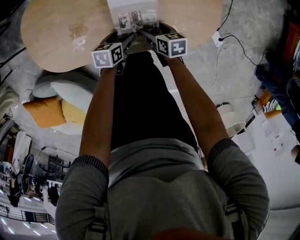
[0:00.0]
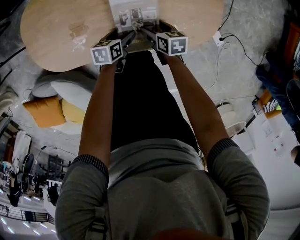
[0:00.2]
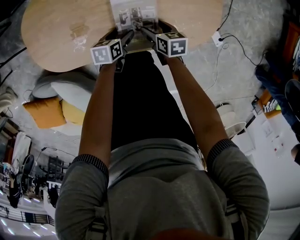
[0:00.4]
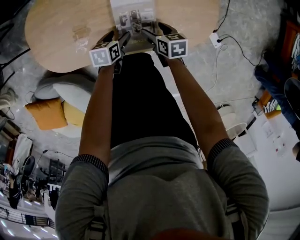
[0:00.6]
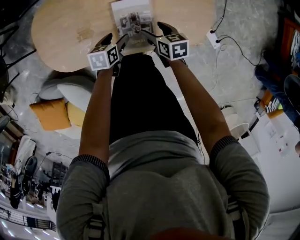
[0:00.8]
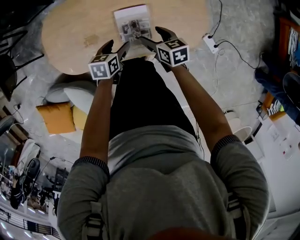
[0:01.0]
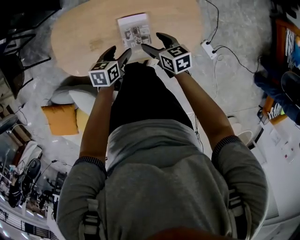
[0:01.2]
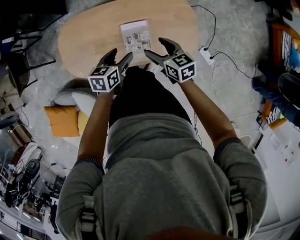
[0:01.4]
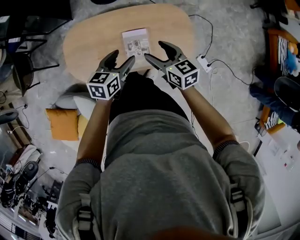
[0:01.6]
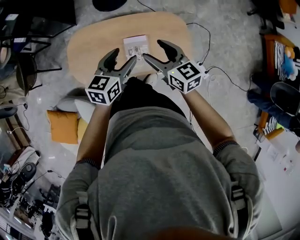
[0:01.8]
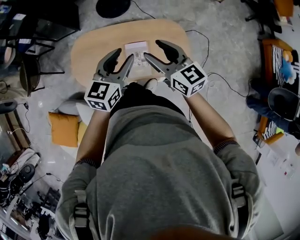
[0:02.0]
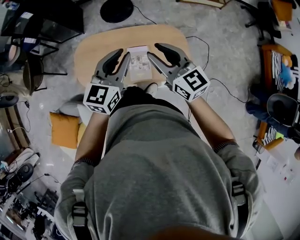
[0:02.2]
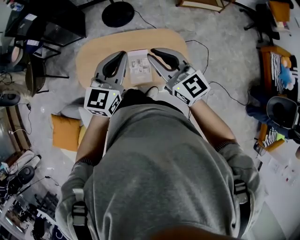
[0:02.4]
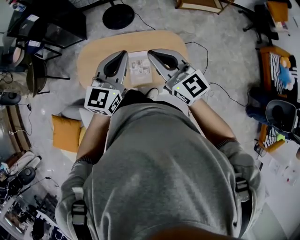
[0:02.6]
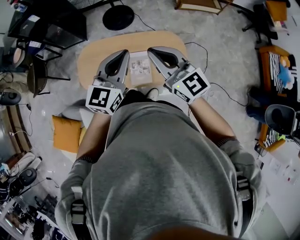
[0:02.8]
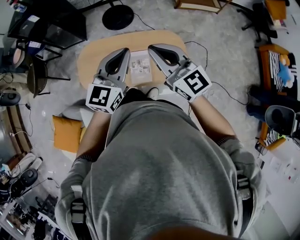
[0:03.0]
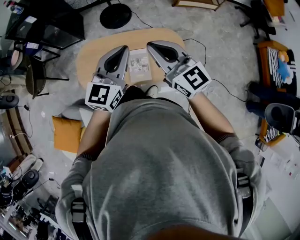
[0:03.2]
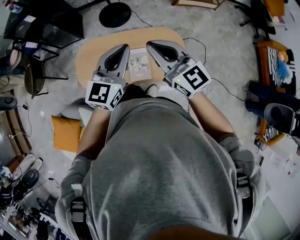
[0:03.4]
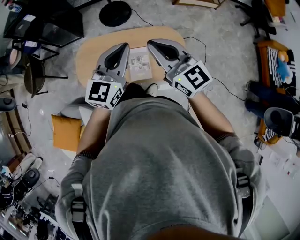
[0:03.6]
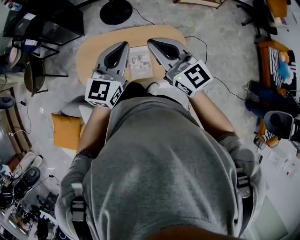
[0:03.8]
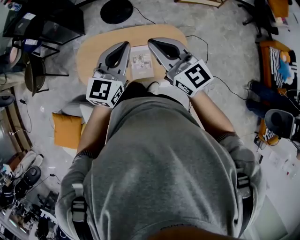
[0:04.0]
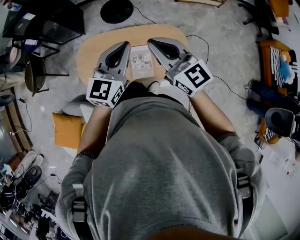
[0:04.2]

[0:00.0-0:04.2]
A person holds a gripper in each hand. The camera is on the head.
0:00.0 to 0:01.4: The grippers both shift upward by about 30 cm. The right gripper turns by about 30 degrees.
0:01.4 to 0:02.8: The grippers both shift upward by roughly 35 cm. The left gripper points its fingers approximately 30 degrees further upward, and closes its fingers. The right gripper tilts its fingers approximately 30 degrees upward, and closes its fingers.
0:02.8 to 0:04.2: There are only small adjustments of the grippers.

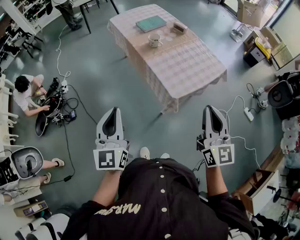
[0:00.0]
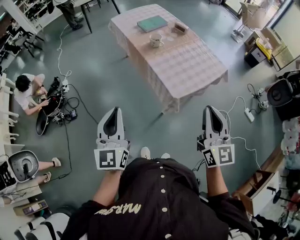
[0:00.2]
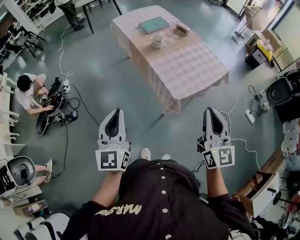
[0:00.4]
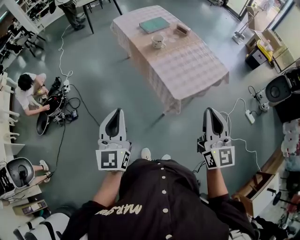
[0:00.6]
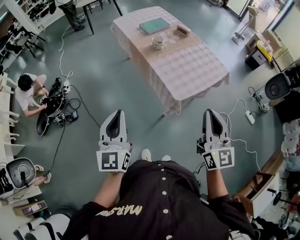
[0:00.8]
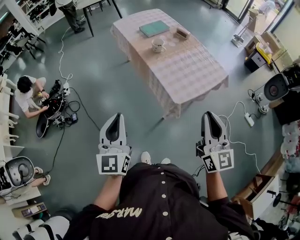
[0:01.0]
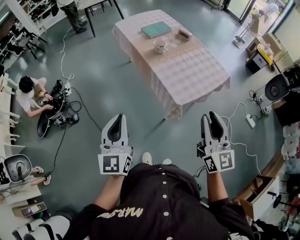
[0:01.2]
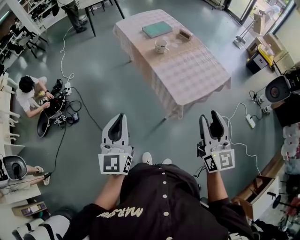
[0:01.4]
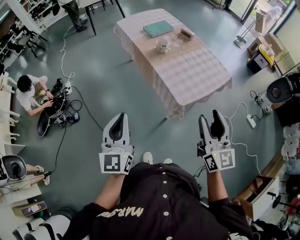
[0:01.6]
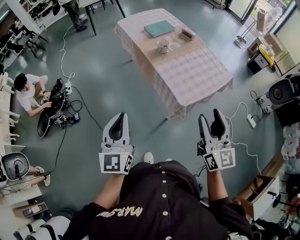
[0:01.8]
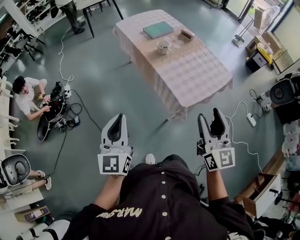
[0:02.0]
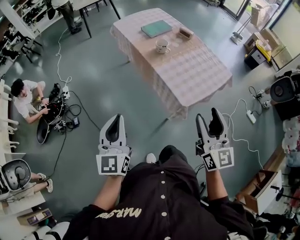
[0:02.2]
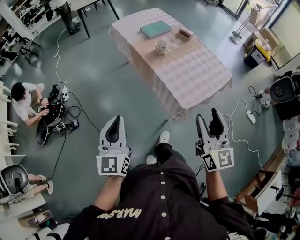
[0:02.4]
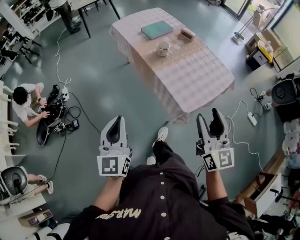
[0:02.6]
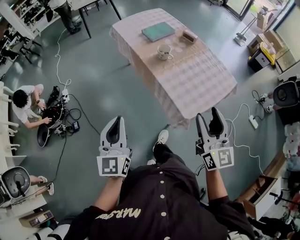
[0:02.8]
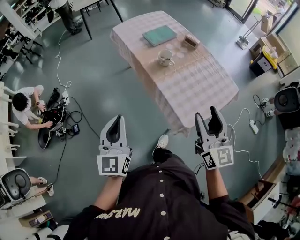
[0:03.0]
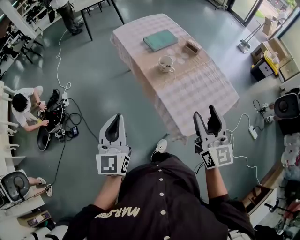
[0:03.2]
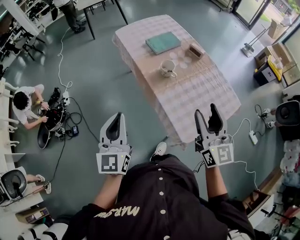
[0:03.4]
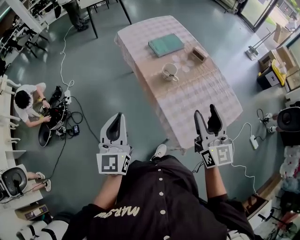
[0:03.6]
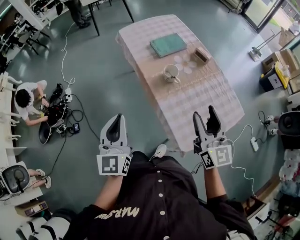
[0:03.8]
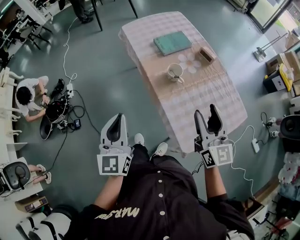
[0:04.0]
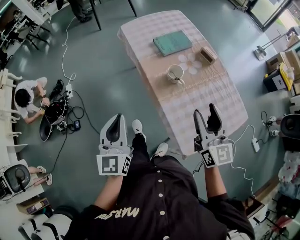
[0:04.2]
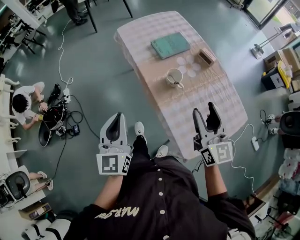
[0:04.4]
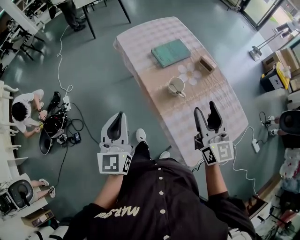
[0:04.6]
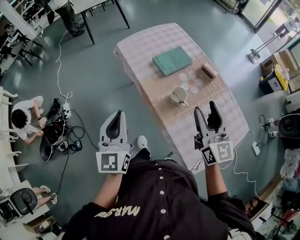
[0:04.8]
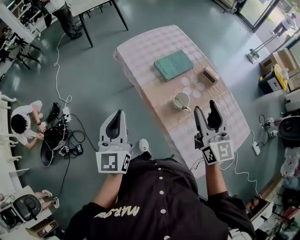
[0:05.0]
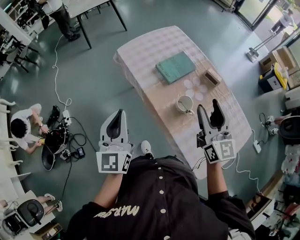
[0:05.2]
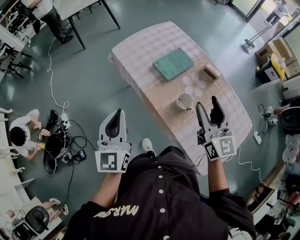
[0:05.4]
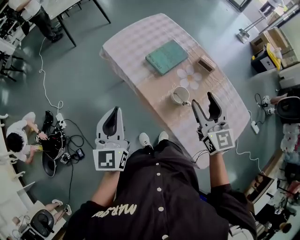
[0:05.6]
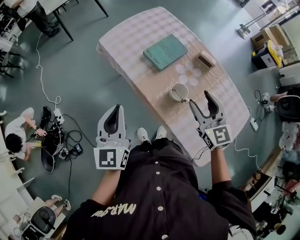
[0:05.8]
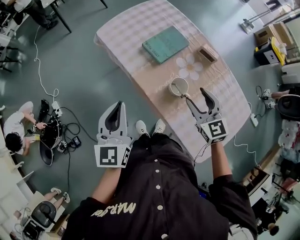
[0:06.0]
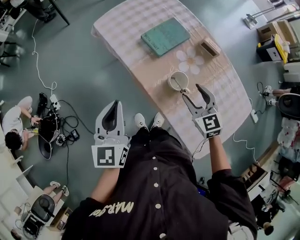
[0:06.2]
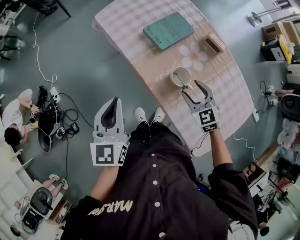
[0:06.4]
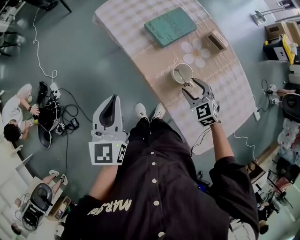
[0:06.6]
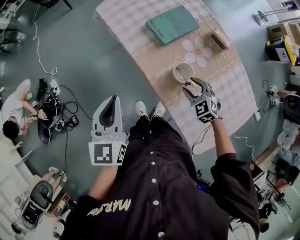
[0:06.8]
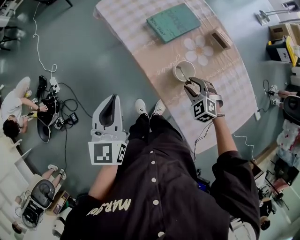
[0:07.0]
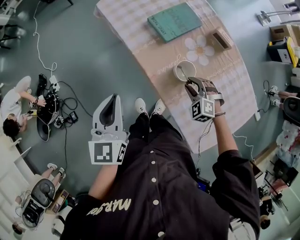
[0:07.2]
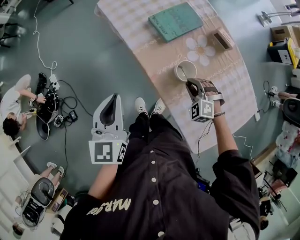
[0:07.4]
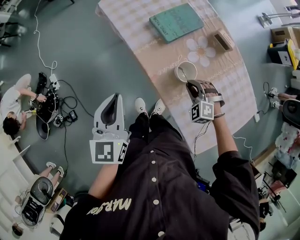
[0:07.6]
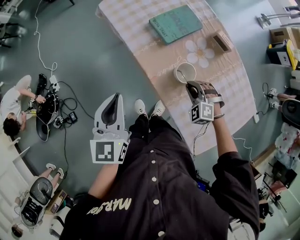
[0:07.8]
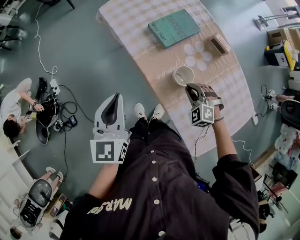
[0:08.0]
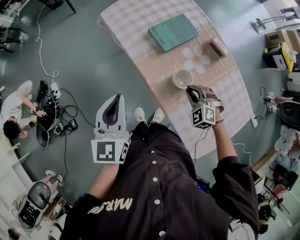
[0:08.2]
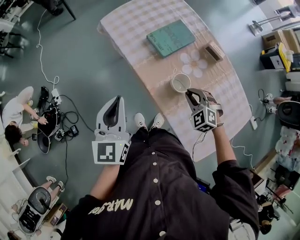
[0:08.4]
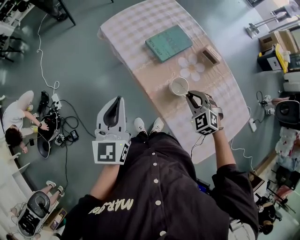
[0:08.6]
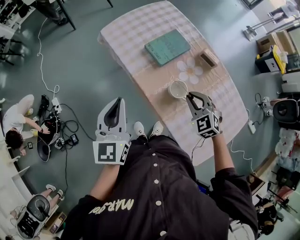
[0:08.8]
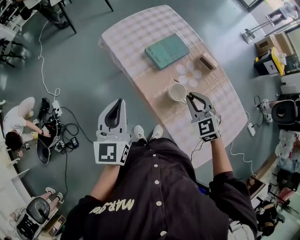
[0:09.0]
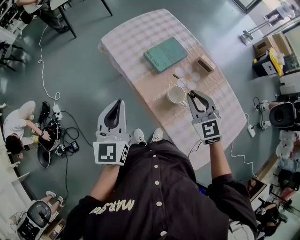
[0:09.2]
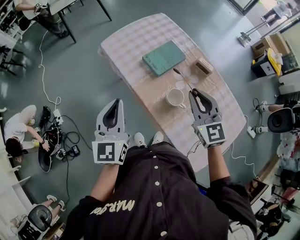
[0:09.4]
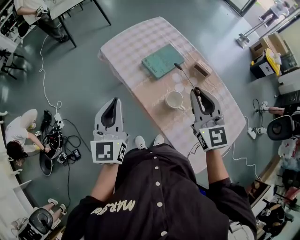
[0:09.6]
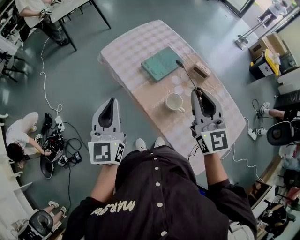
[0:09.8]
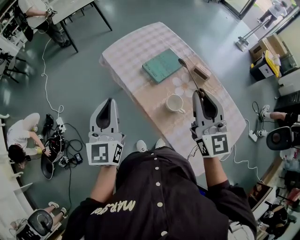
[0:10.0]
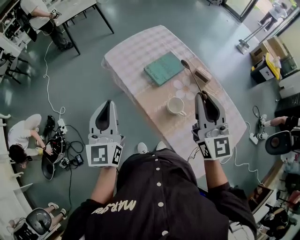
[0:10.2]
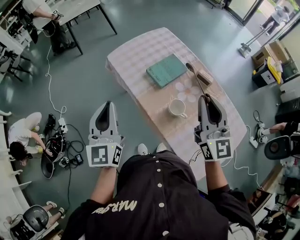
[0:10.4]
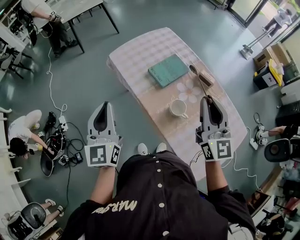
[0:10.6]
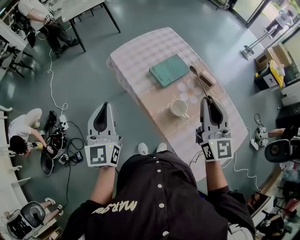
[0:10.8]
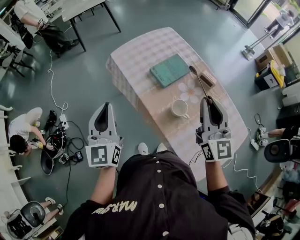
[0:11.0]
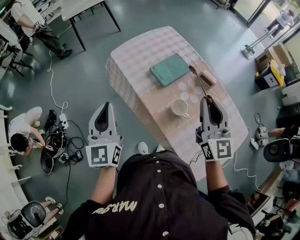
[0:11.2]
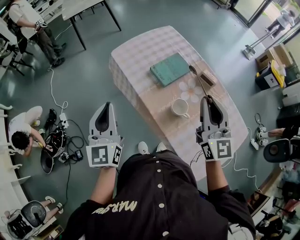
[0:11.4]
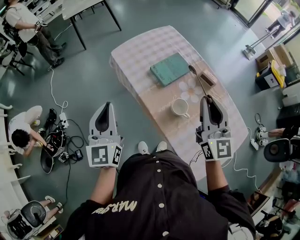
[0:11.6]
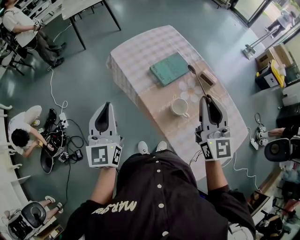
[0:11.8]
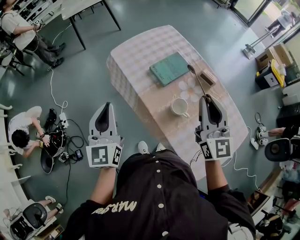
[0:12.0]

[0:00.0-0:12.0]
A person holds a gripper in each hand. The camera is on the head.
0:00.0 to 0:01.6: The right gripper opens its fingers.
0:01.6 to 0:03.0: The two grippers go about 15 cm forward.
0:03.0 to 0:04.4: The grippers both shift forward by approximately 20 cm.
0:04.4 to 0:06.0: The right gripper travels forward and downward by approximately 20 cm, and swivels about 30 degrees, while the left gripper moves forward, approximately 20 cm.
0:06.0 to 0:07.6: The right gripper moves downward, some 20 cm, rolls counterclockwise, seen from behind, by roughly 50 degrees, and closes. The left gripper ends up approximately 5 cm from where it was.
0:07.6 to 0:09.0: The right gripper heads upward, covering roughly 15 cm, and swivels some 40 degrees, while the left gripper goes approximately 5 cm upward.
0:09.0 to 0:10.4: The right gripper heads upward, covering about 25 cm, and tips its fingers upward by about 40 degrees. Meanwhile the left gripper goes roughly 5 cm upward.
0:10.4 to 0:12.0: The grippers make only small movements.

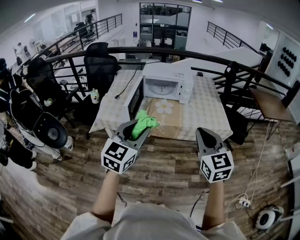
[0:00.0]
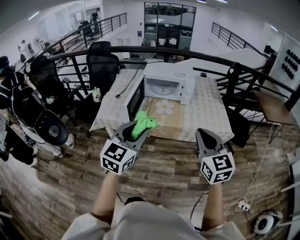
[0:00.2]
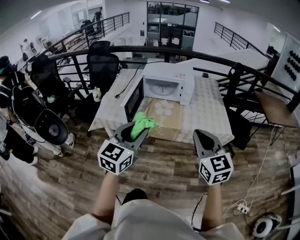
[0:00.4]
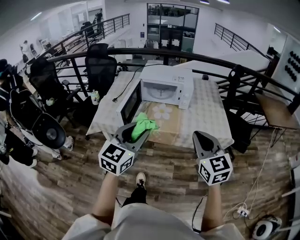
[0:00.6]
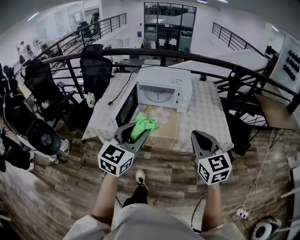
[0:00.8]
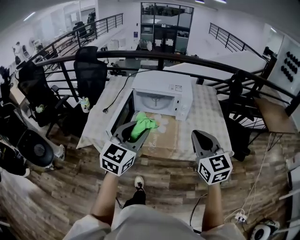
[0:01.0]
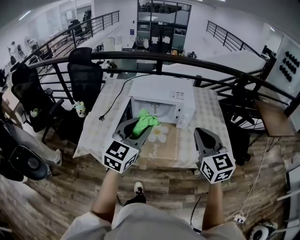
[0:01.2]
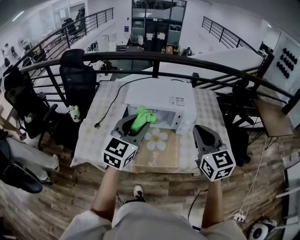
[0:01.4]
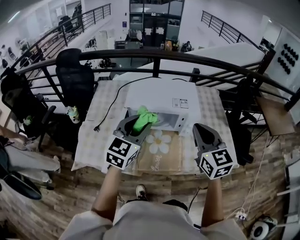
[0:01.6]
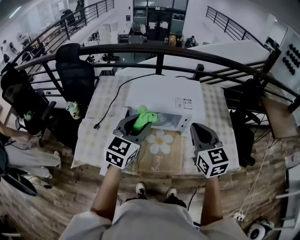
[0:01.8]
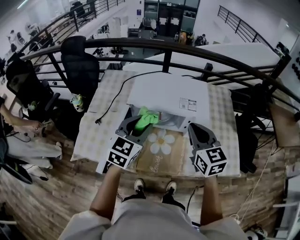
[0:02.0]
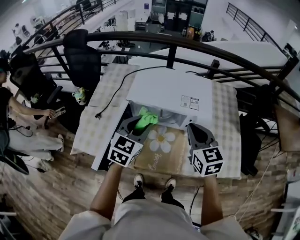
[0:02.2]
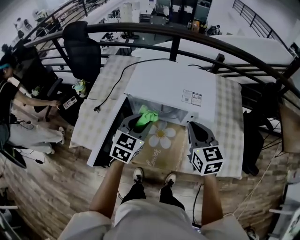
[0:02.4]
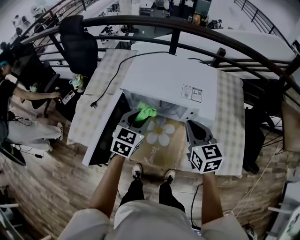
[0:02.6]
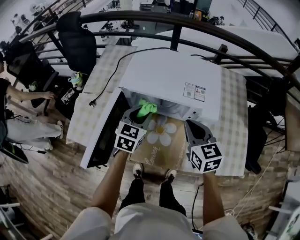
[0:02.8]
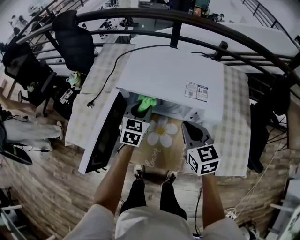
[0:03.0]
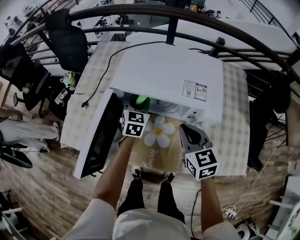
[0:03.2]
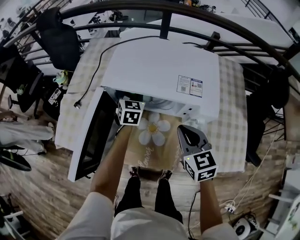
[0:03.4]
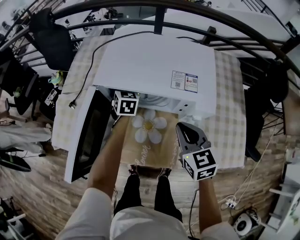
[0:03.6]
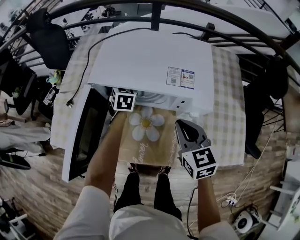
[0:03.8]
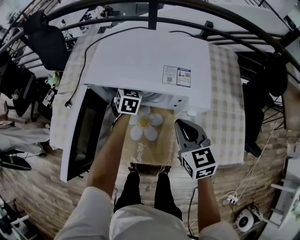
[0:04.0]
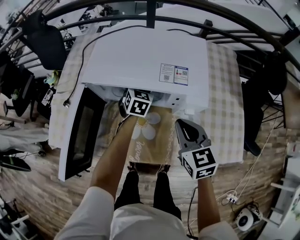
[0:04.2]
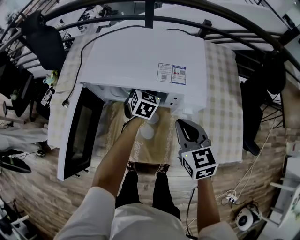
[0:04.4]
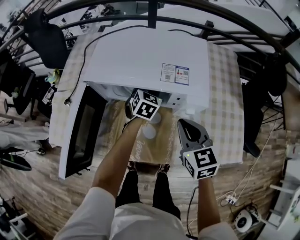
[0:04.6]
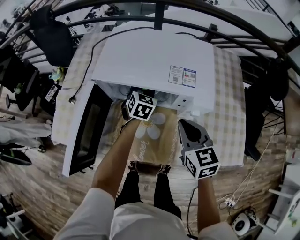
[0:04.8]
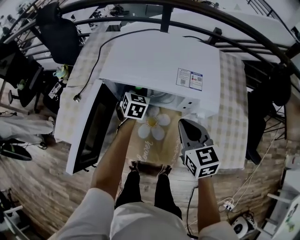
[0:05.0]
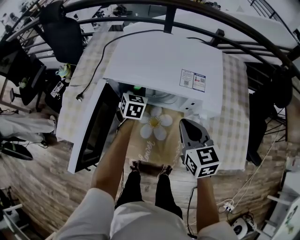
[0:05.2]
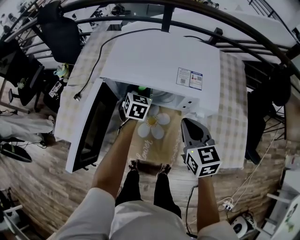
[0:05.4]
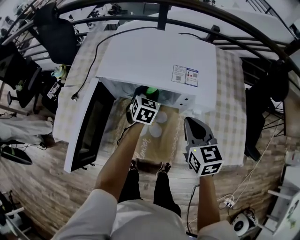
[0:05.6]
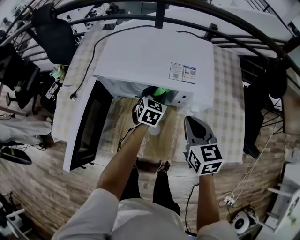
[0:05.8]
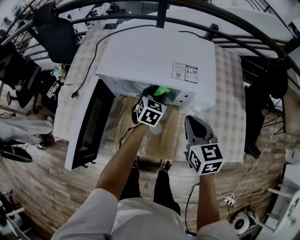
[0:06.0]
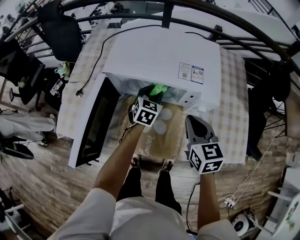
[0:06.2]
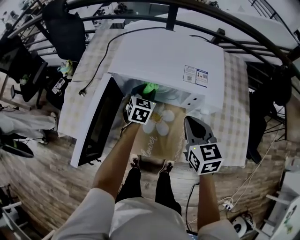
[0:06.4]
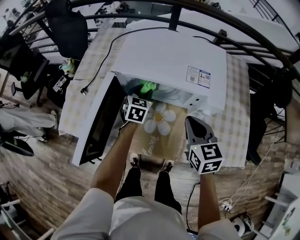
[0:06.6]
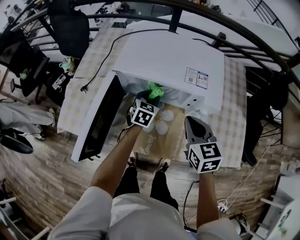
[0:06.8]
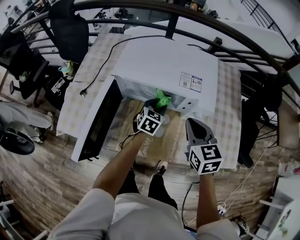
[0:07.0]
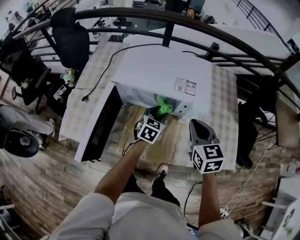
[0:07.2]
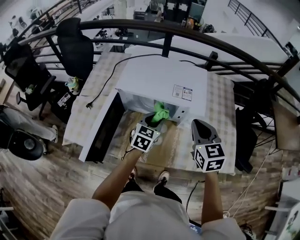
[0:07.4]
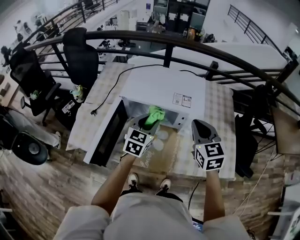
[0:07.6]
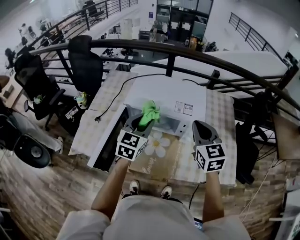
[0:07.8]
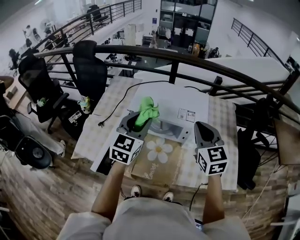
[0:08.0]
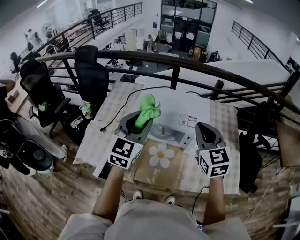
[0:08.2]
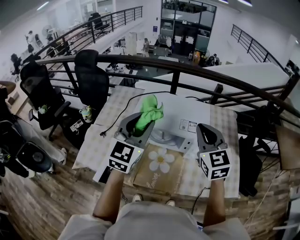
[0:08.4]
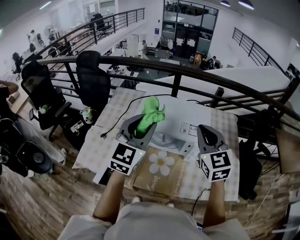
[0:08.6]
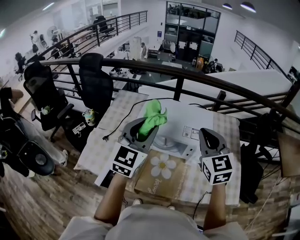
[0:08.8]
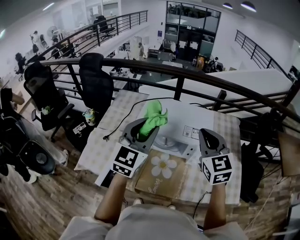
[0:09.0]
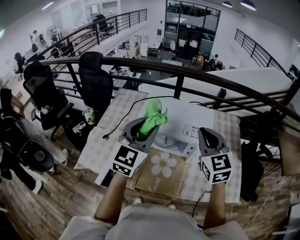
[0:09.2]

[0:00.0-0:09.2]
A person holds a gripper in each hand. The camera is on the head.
0:00.0 to 0:01.6: The pair of grippers is taken forward, approximately 40 cm.
0:01.6 to 0:03.0: The two grippers go about 25 cm downward and forward. The right gripper swivels roughly 20 degrees. The left gripper rotates some 30 degrees.
0:03.0 to 0:04.6: The right gripper heads to the right, covering approximately 5 cm. The left gripper shifts approximately 20 cm to the right, downward and forward.
0:04.6 to 0:06.2: The left gripper goes left and right, about 15 cm each way, reversing 2 times.
0:06.2 to 0:07.6: The left gripper moves upward and backward, approximately 20 cm; the right gripper travels upward by some 15 cm.
0:07.6 to 0:09.2: The right gripper shifts approximately 10 cm upward and to the left; the left gripper moves upward, some 20 cm, and turns by approximately 20 degrees.
